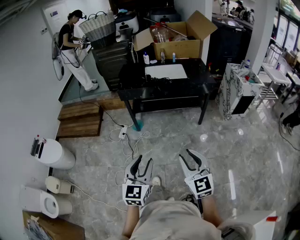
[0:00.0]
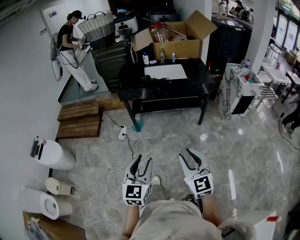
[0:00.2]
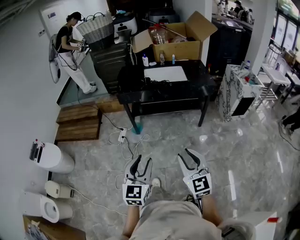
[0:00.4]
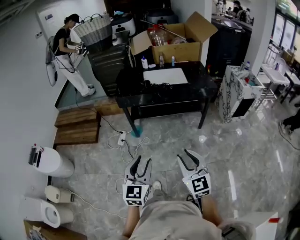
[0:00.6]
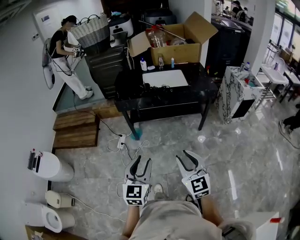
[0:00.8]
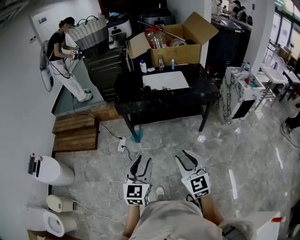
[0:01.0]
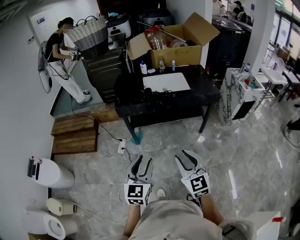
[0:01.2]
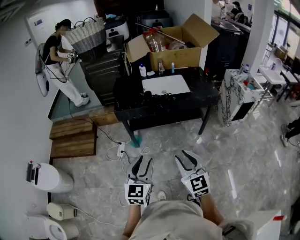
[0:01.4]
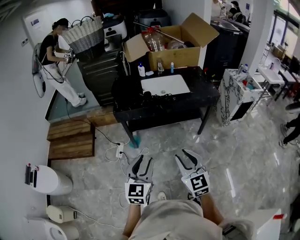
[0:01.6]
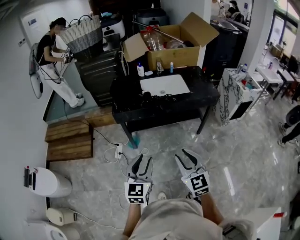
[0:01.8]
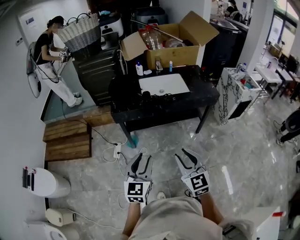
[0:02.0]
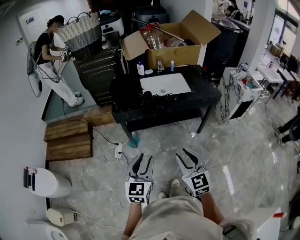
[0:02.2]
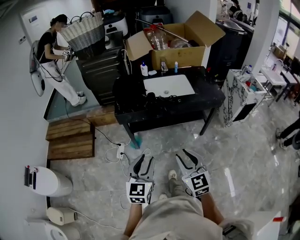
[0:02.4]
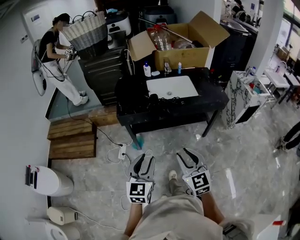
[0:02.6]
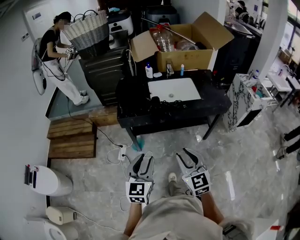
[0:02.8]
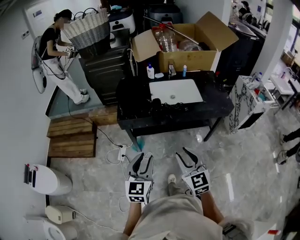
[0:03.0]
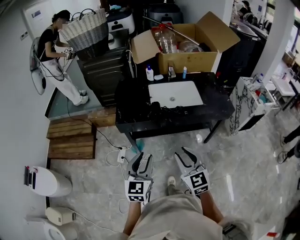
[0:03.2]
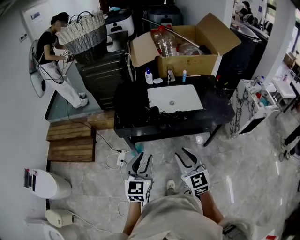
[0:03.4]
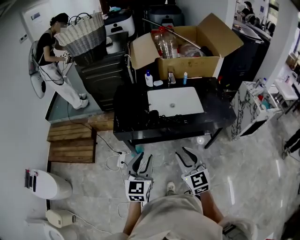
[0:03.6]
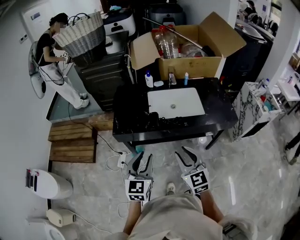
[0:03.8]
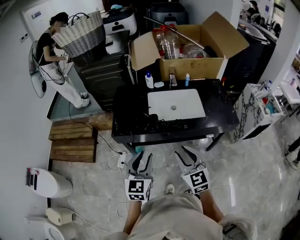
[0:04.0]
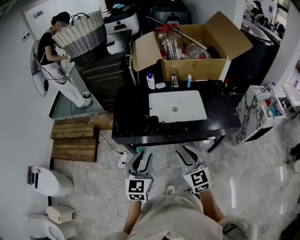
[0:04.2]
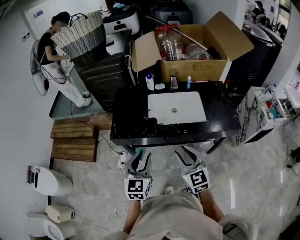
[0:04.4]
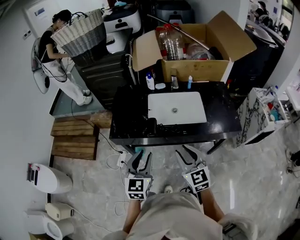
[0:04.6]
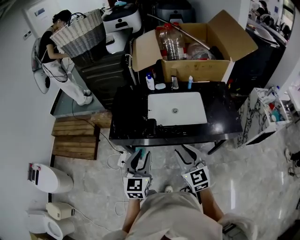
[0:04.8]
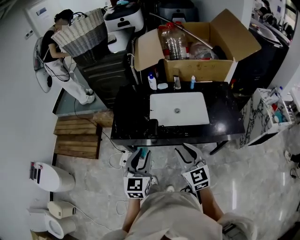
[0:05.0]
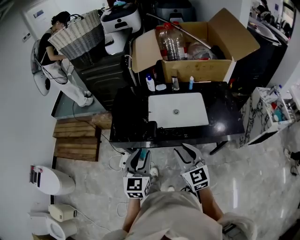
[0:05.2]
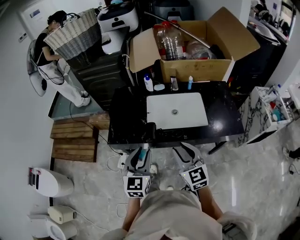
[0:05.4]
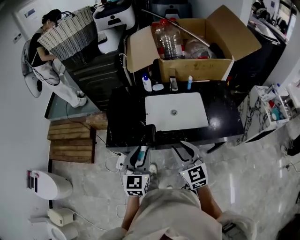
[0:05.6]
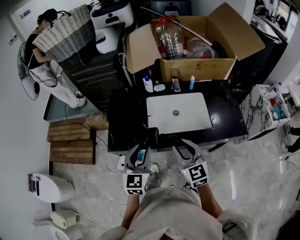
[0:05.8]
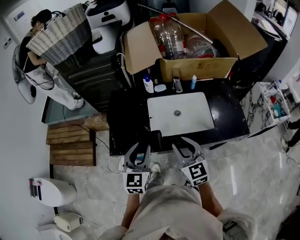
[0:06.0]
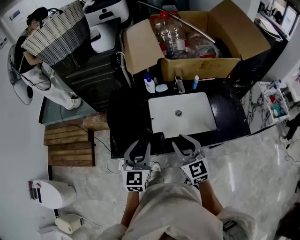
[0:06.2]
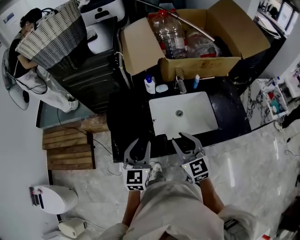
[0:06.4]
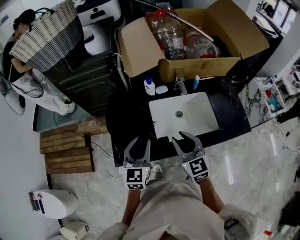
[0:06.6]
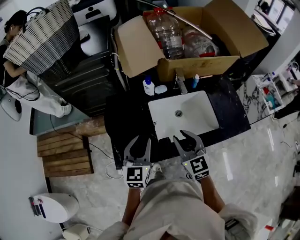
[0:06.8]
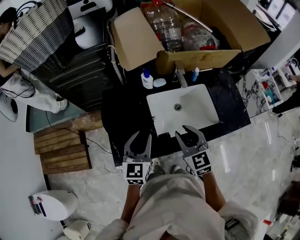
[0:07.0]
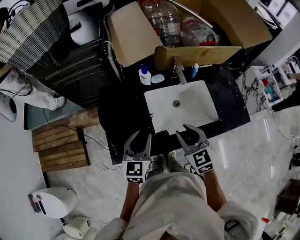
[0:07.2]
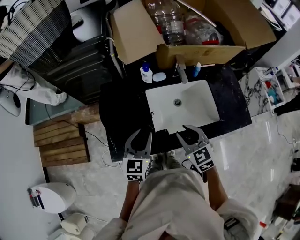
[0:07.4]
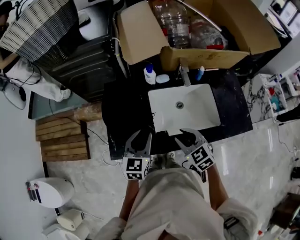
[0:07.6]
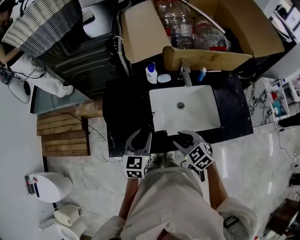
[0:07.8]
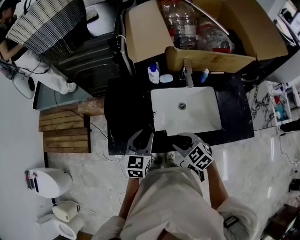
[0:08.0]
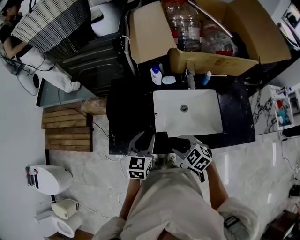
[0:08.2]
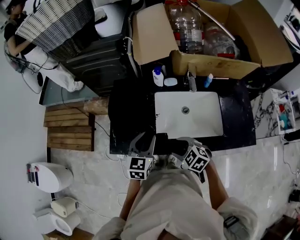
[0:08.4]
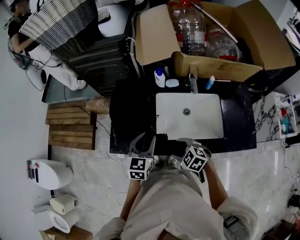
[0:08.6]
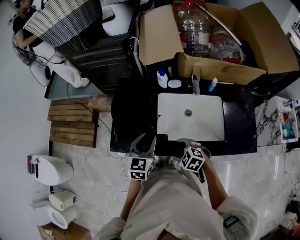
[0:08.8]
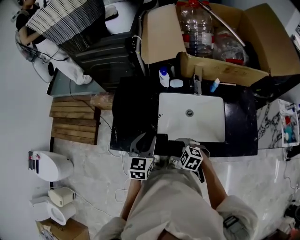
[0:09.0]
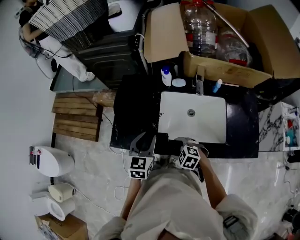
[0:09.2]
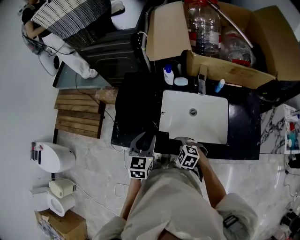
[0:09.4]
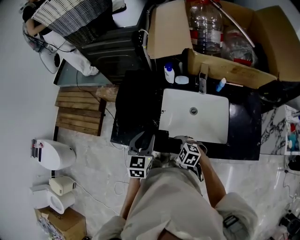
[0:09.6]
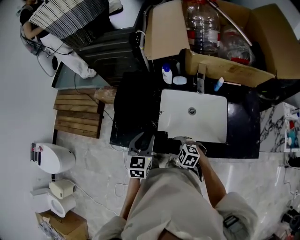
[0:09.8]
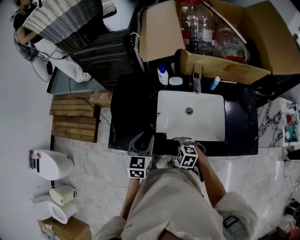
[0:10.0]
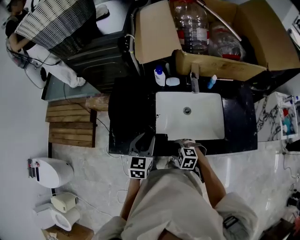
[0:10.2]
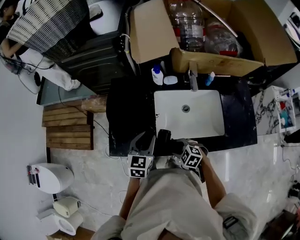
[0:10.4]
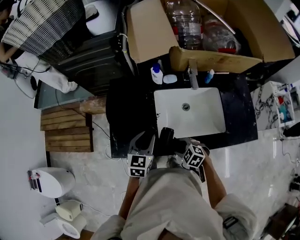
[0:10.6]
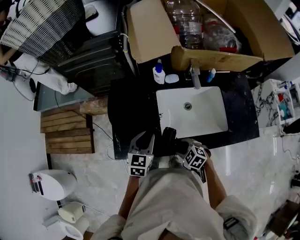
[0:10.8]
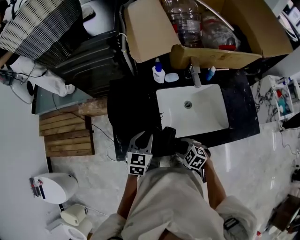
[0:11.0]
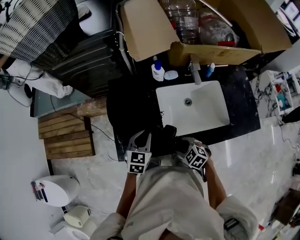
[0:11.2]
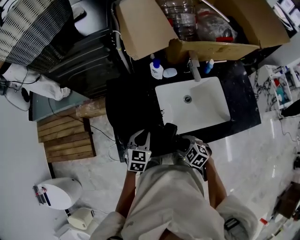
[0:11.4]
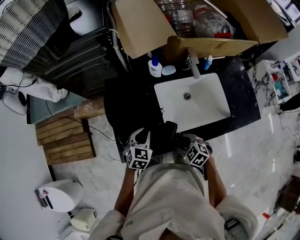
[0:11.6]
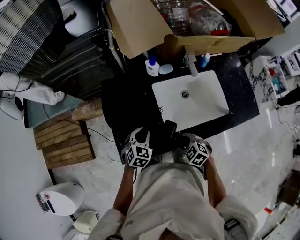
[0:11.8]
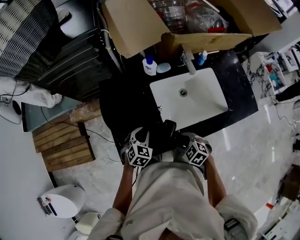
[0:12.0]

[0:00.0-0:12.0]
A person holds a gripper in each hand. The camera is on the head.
0:00.0 to 0:01.6: The grippers both shift forward by approximately 25 cm.
0:01.6 to 0:03.0: Both grippers move forward, approximately 15 cm.
0:03.0 to 0:04.4: Both grippers travel together forward and to the right, some 20 cm.
0:04.4 to 0:06.0: Both grippers travel together forward, roughly 20 cm.
0:06.0 to 0:07.6: The left gripper travels forward and downward by about 15 cm. The right gripper shifts approximately 10 cm downward and forward, and swivels roughly 30 degrees.
0:07.6 to 0:09.0: The right gripper travels downward by approximately 10 cm, changes its angle by about 40 degrees, and opens its fingers.
0:09.0 to 0:10.4: There are only small adjustments of the grippers.
0:10.4 to 0:12.0: The left gripper goes about 15 cm downward and to the left, and swivels approximately 40 degrees, while the right gripper shifts some 5 cm to the left, and turns by about 20 degrees.

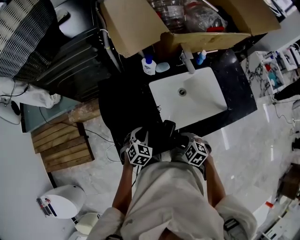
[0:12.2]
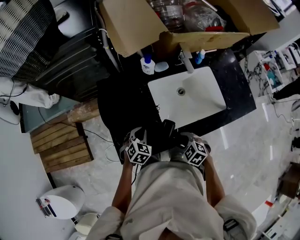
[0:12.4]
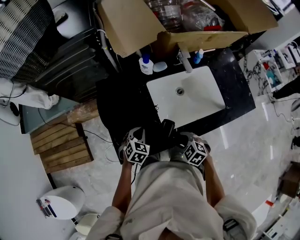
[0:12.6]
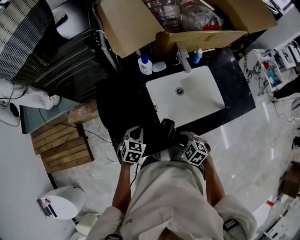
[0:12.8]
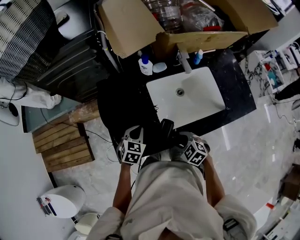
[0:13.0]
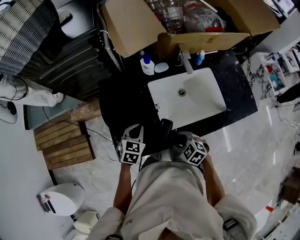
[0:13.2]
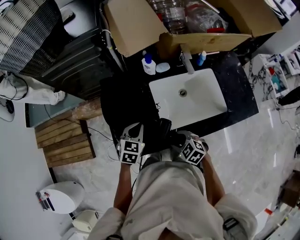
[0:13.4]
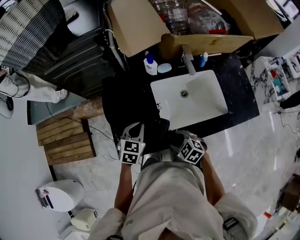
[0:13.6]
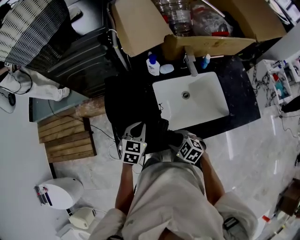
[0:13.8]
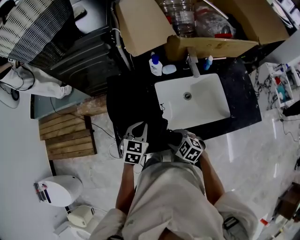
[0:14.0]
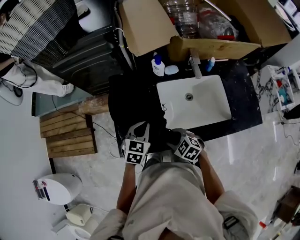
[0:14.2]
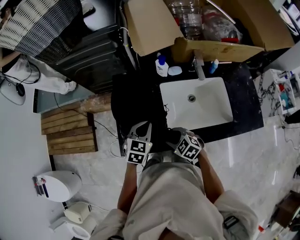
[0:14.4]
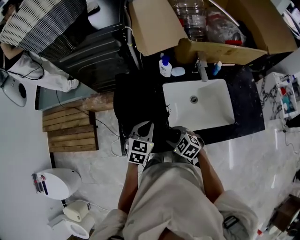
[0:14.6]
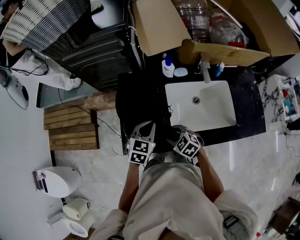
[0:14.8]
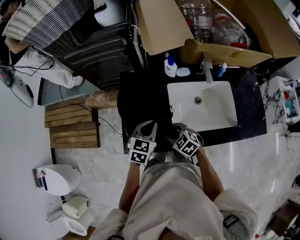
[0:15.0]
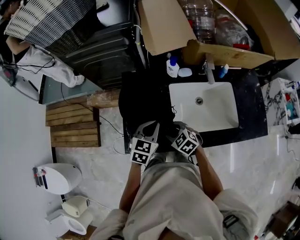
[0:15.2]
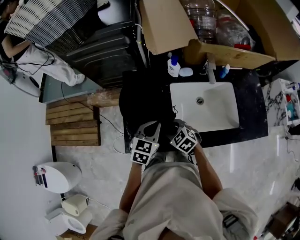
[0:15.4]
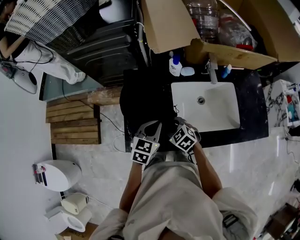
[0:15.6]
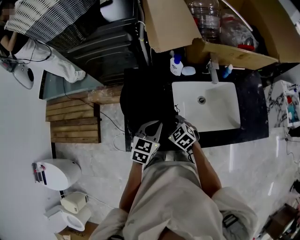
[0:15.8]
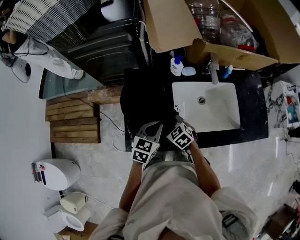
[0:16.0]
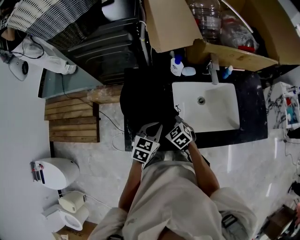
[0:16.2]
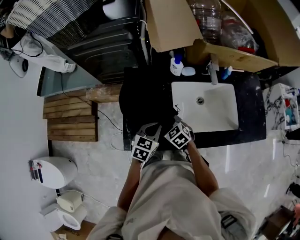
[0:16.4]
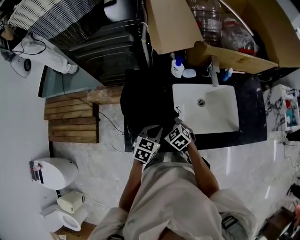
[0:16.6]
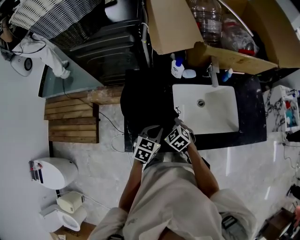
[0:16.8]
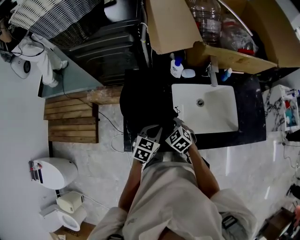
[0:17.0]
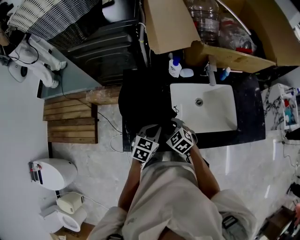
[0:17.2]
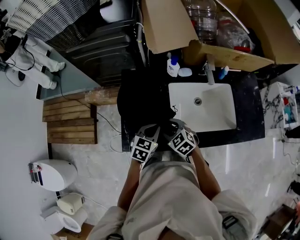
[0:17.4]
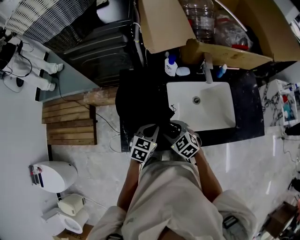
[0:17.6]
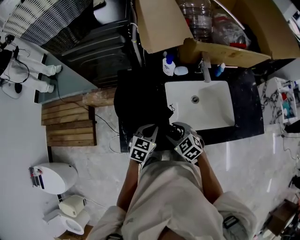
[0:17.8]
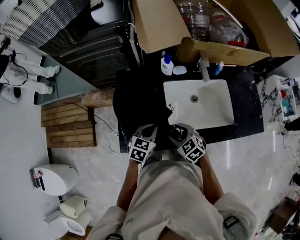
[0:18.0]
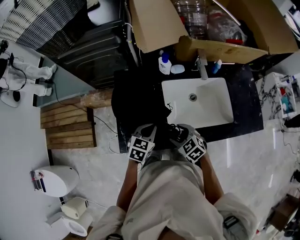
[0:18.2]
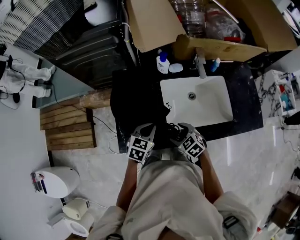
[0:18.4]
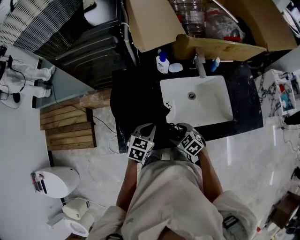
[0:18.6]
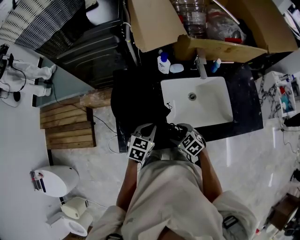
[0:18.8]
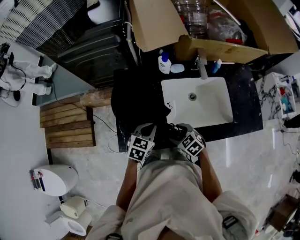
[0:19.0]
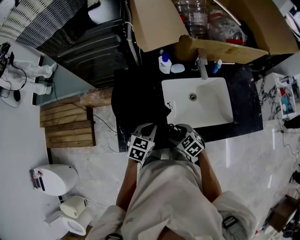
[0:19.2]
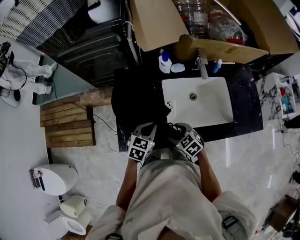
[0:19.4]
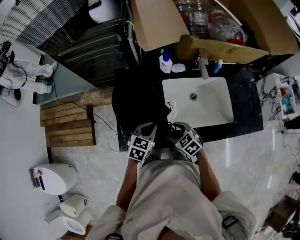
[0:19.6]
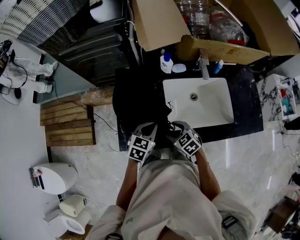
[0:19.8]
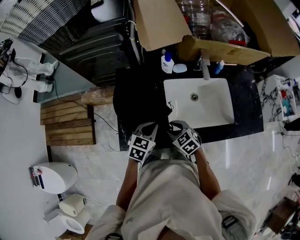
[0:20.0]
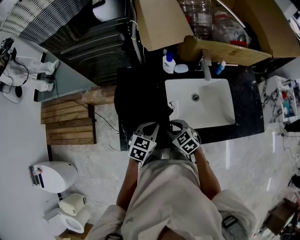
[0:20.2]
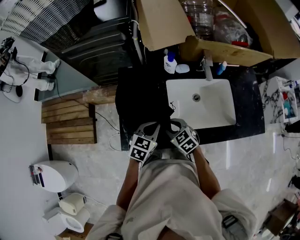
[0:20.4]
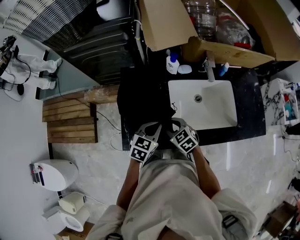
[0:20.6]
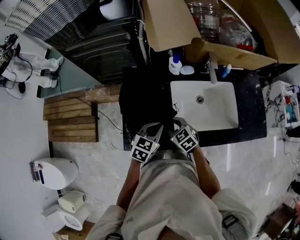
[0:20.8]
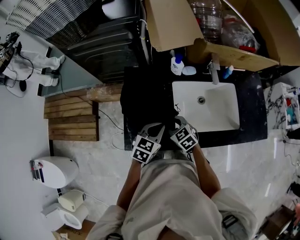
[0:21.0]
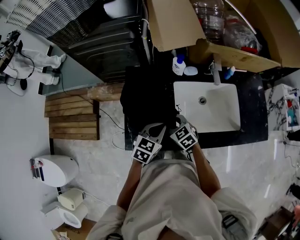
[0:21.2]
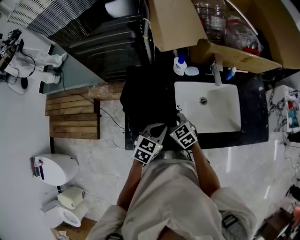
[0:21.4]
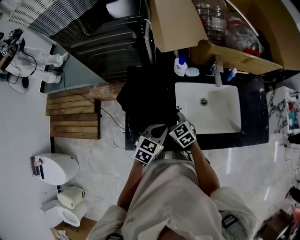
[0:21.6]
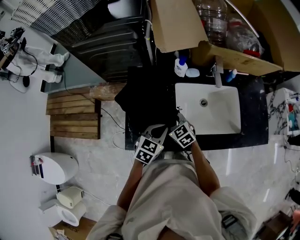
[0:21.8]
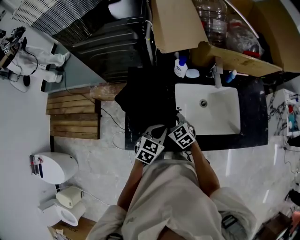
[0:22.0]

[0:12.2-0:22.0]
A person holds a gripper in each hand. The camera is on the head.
0:12.2 to 0:13.6: The left gripper moves upward, roughly 10 cm.
0:13.6 to 0:15.0: The right gripper heads forward, covering about 5 cm.
0:15.0 to 0:16.4: The right gripper heads forward, covering roughly 5 cm.
0:16.4 to 0:17.8: The right gripper is displaced backward and to the right by some 10 cm.
0:17.8 to 0:19.2: The right gripper moves roughly 5 cm.
0:19.2 to 0:20.6: The right gripper travels forward by roughly 5 cm, and closes.
0:20.6 to 0:22.0: There are only small adjustments of the grippers.

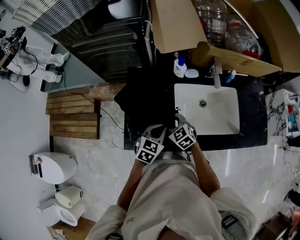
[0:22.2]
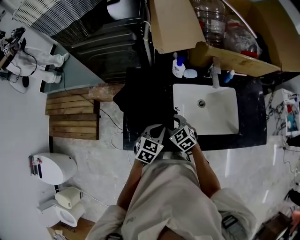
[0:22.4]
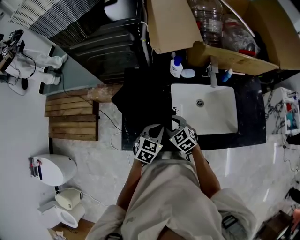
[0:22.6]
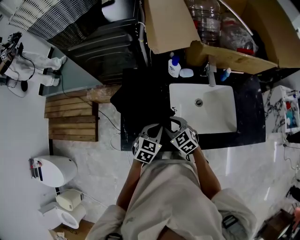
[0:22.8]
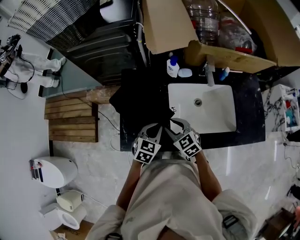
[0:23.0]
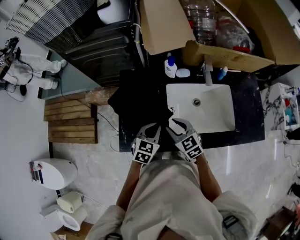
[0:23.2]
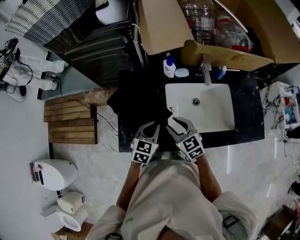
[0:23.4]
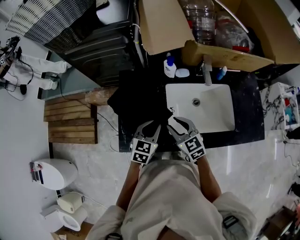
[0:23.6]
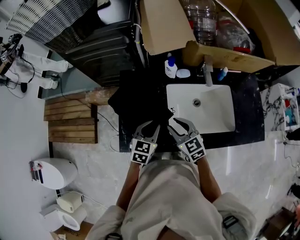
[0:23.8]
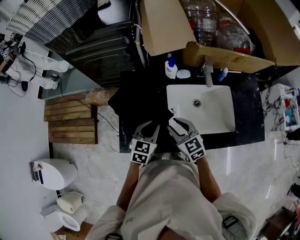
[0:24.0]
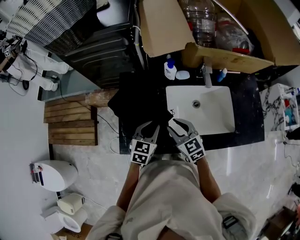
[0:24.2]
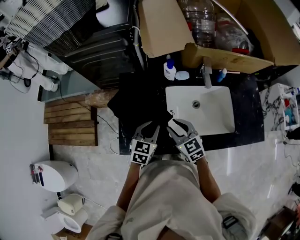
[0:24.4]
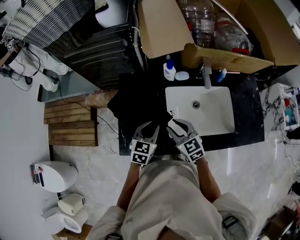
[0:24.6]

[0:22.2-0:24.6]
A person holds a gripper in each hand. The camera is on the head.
0:22.2 to 0:23.4: The right gripper goes roughly 10 cm upward and to the right.
0:23.4 to 0:24.6: The grippers stay close to where they were, moving slightly.
